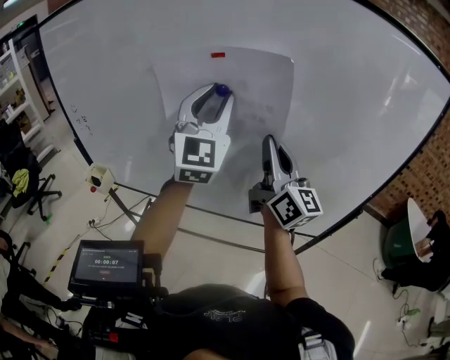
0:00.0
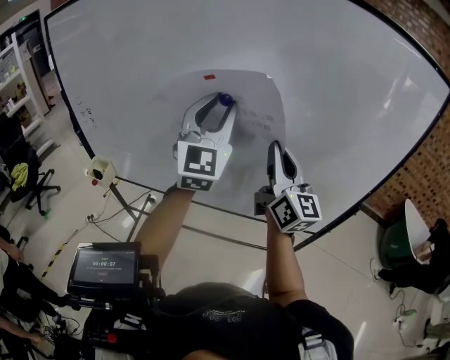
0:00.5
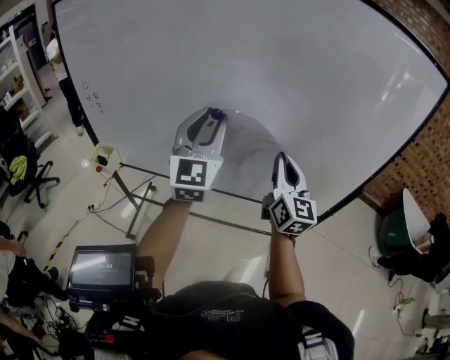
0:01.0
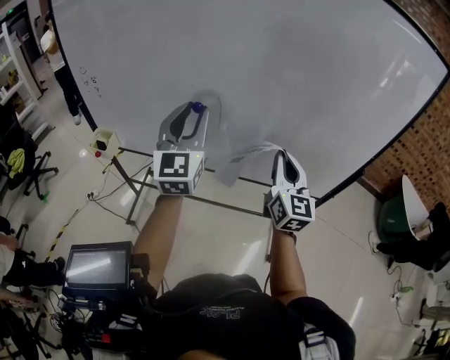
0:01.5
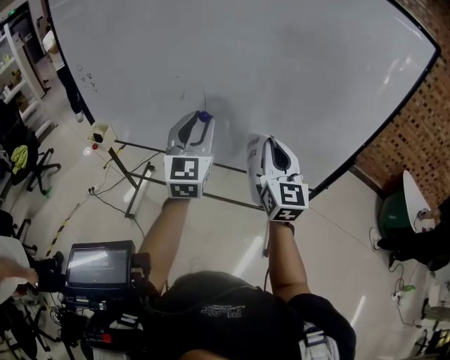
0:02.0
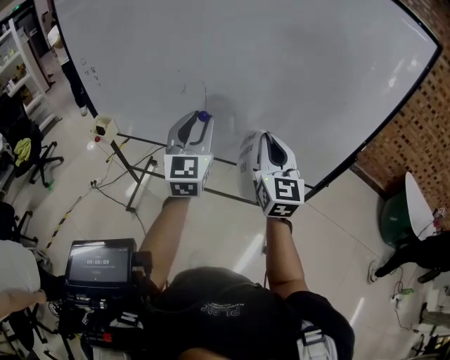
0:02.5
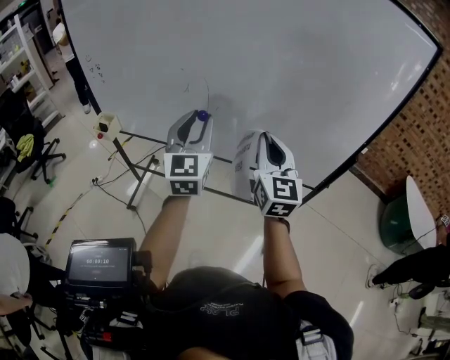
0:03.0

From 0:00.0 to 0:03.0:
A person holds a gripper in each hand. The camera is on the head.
From 0:00.0 to 0:01.5: The right gripper goes some 15 cm downward and backward, and swivels some 30 degrees. The left gripper goes about 15 cm downward, backward and to the left.
From 0:01.5 to 0:03.0: The left gripper shifts some 5 cm to the right.

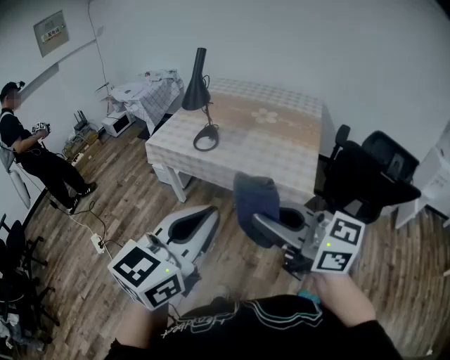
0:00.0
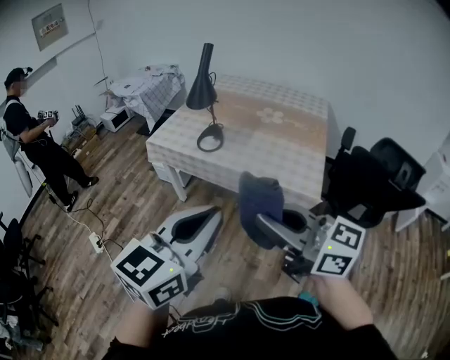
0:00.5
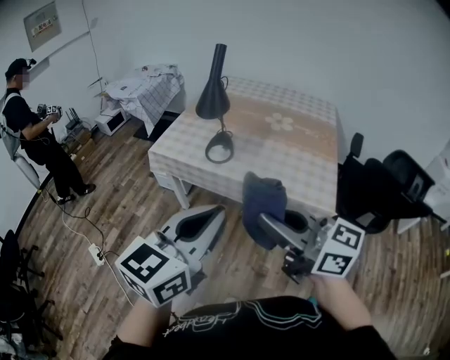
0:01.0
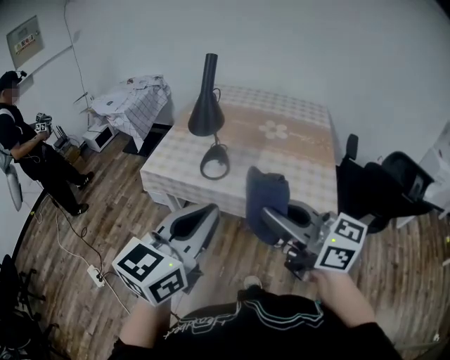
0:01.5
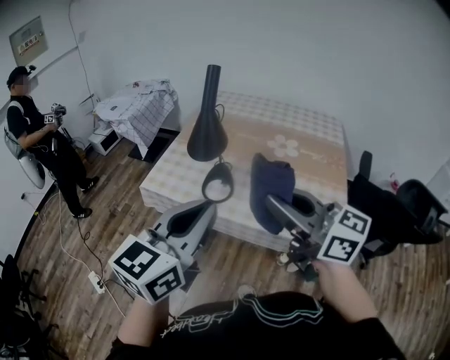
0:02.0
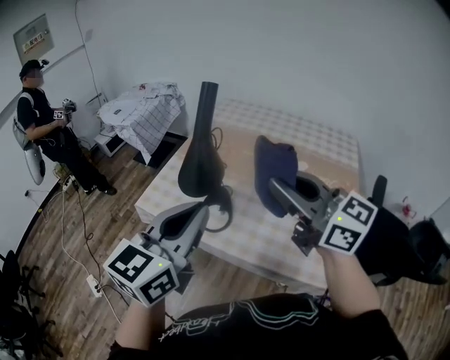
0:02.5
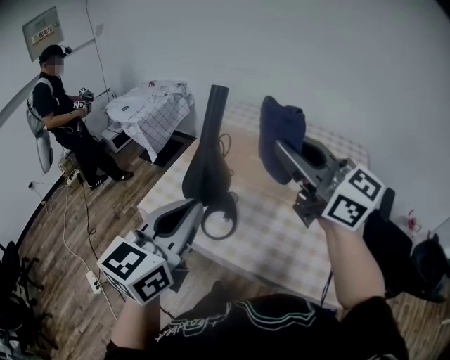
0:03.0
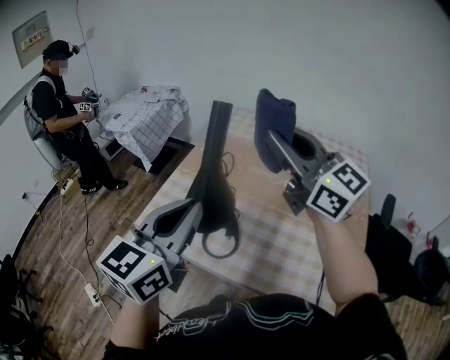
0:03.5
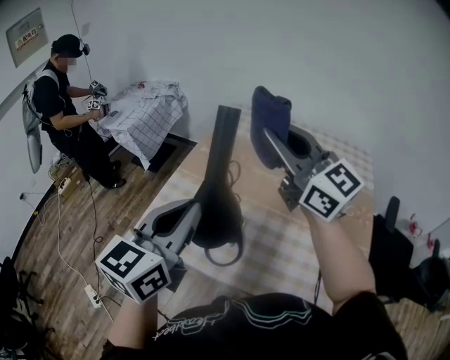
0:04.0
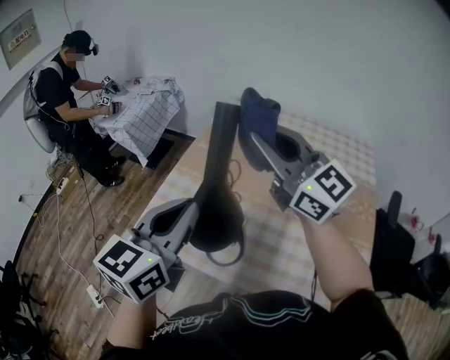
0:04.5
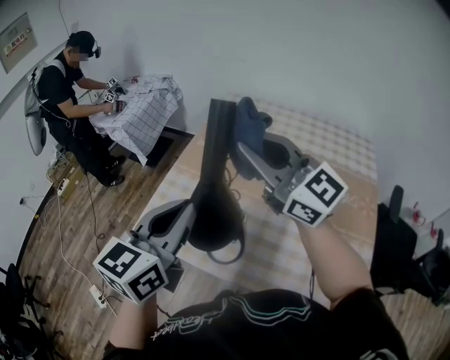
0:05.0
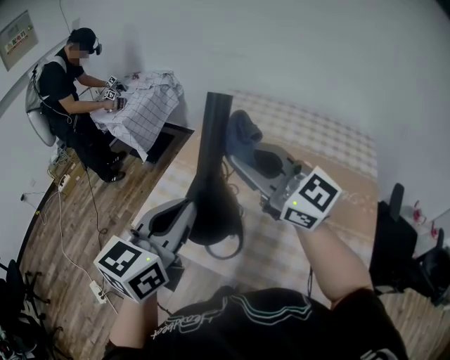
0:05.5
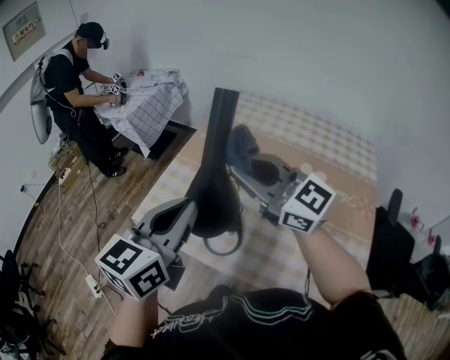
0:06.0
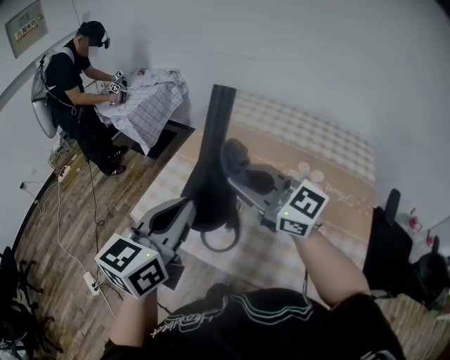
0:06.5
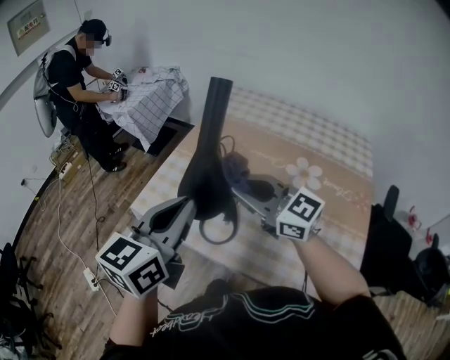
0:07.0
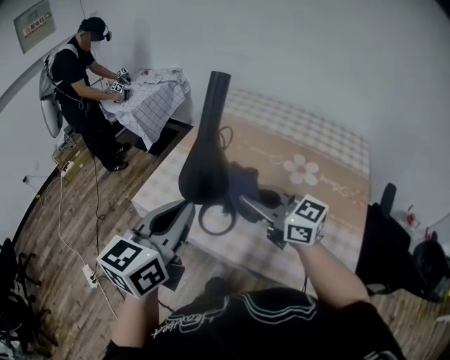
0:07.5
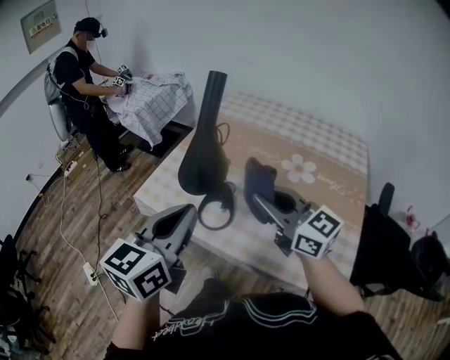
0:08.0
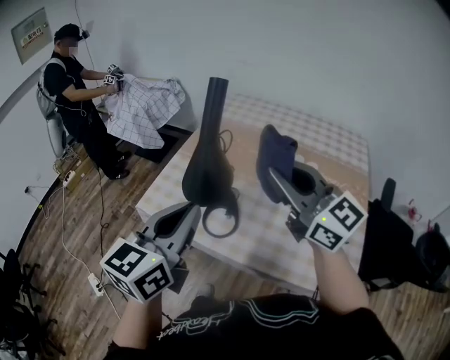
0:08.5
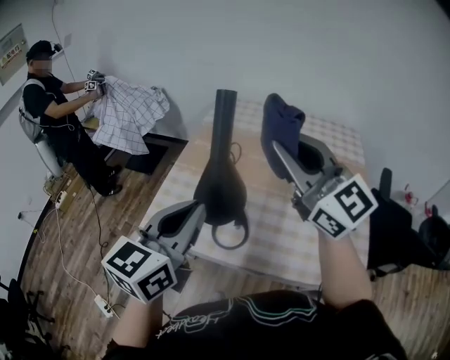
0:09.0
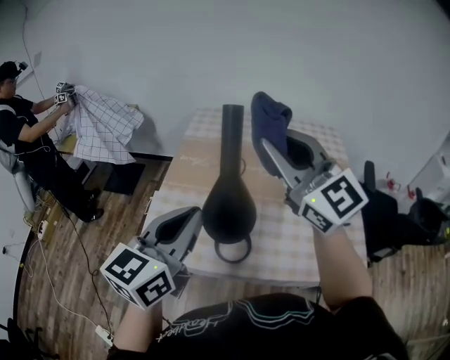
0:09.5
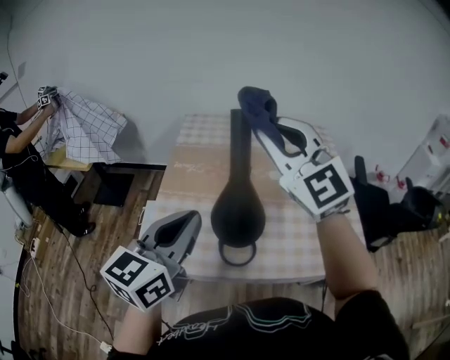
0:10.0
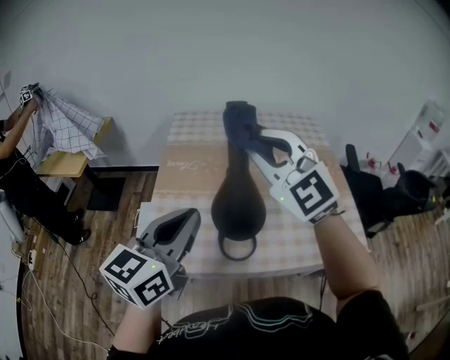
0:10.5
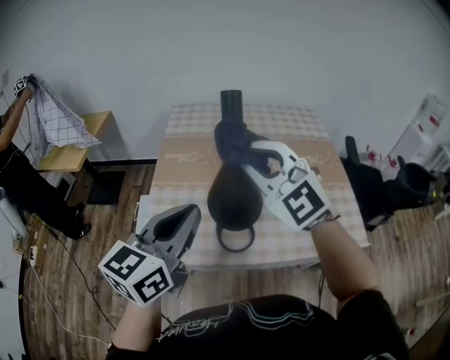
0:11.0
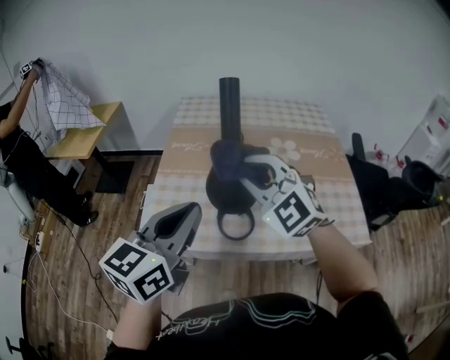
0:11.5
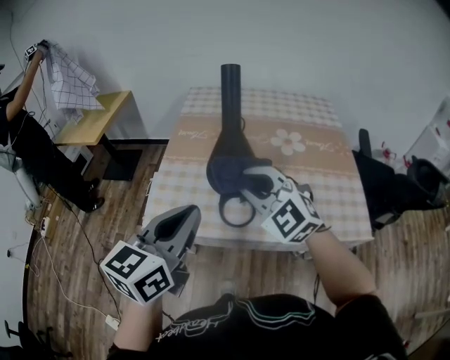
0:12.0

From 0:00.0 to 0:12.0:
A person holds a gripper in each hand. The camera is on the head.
From 0:00.0 to 0:02.0: The two grippers go about 35 cm forward.
From 0:02.0 to 0:04.0: Both grippers travel together forward, roughly 35 cm. The right gripper turns by roughly 20 degrees.
From 0:04.0 to 0:06.0: The right gripper is displaced downward and to the left by approximately 10 cm.
From 0:06.0 to 0:08.0: The left gripper is displaced backward by approximately 15 cm, while the right gripper travels backward and downward by some 15 cm.
From 0:08.0 to 0:10.0: The right gripper moves roughly 25 cm, and turns by roughly 60 degrees, while the left gripper ends up approximately 20 cm from where it was, and turns by about 30 degrees.
From 0:10.0 to 0:12.0: The left gripper goes some 10 cm backward. Meanwhile the right gripper goes about 25 cm downward and backward, and rotates about 20 degrees.

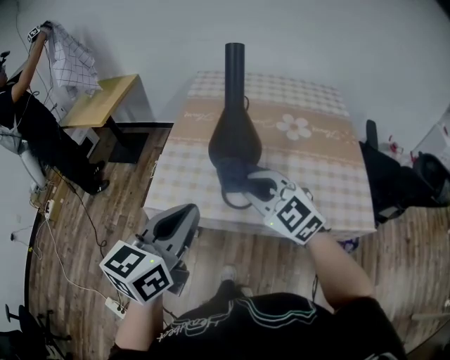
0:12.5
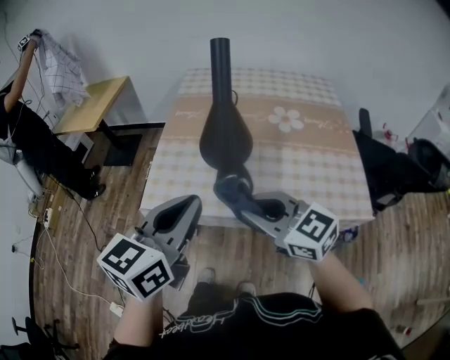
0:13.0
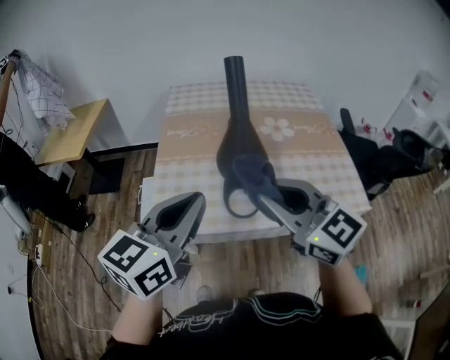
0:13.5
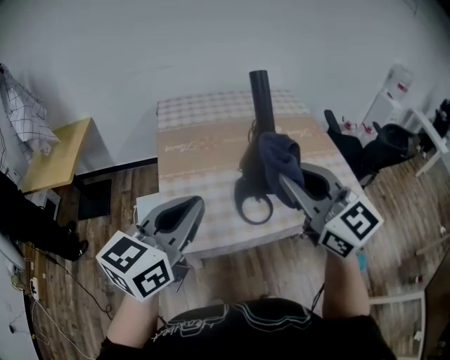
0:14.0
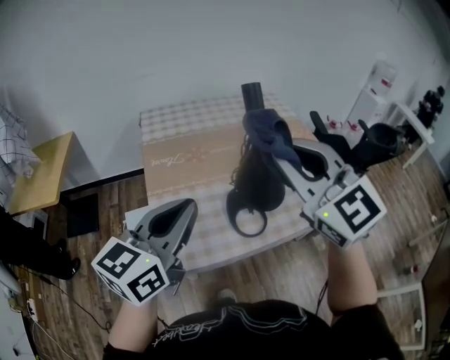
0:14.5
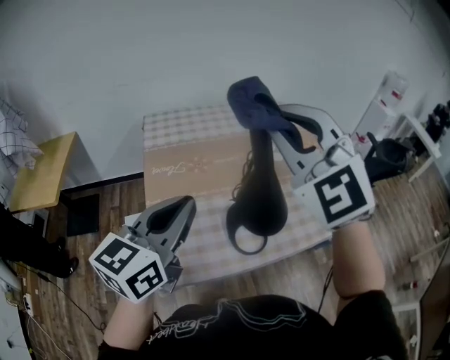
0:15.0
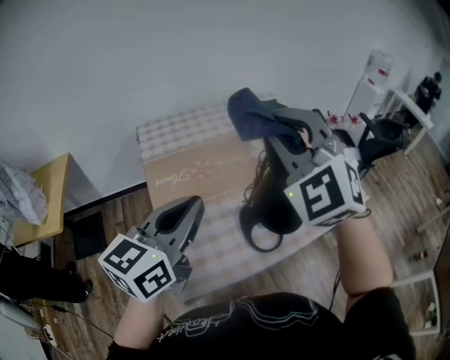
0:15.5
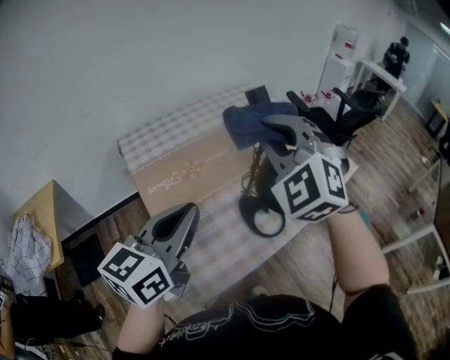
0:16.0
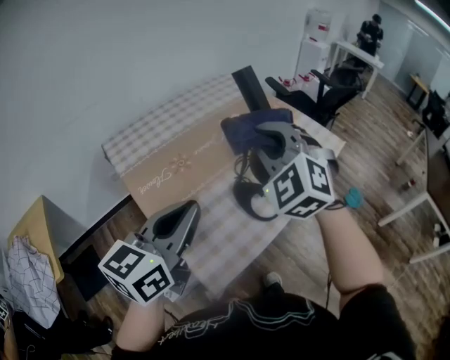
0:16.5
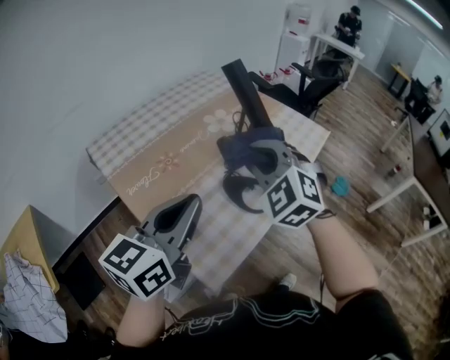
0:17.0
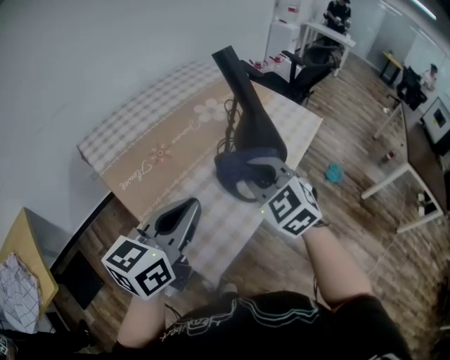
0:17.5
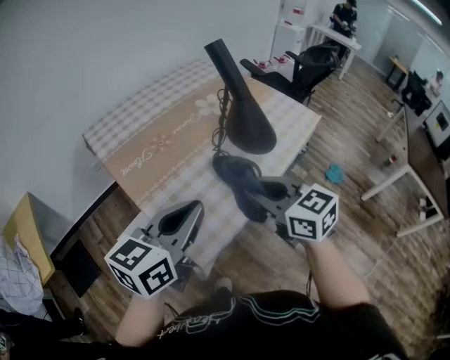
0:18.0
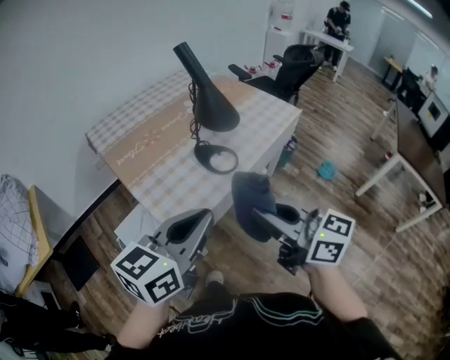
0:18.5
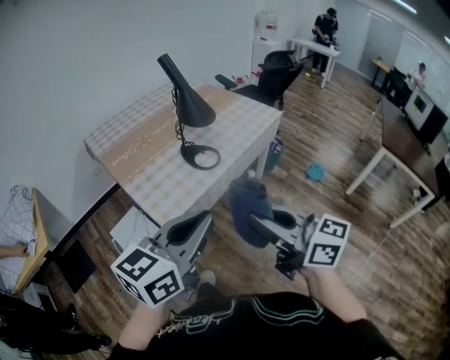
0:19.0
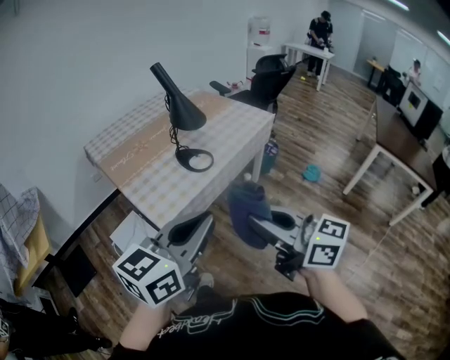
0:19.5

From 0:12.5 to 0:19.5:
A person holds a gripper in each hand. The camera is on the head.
From 0:12.5 to 0:14.5: The right gripper moves upward, some 20 cm, and swivels approximately 40 degrees. The left gripper ends up about 20 cm from where it was, and swivels about 30 degrees.
From 0:14.5 to 0:16.0: The two grippers go about 10 cm forward and to the left. The right gripper rotates about 40 degrees.
From 0:16.0 to 0:17.5: The left gripper heads downward, covering approximately 5 cm, while the right gripper heads downward and backward, covering approximately 20 cm, and swivels roughly 30 degrees.
From 0:17.5 to 0:19.5: The two grippers travel together, backward and to the right, roughly 40 cm. The right gripper points its fingers roughly 30 degrees further upward.

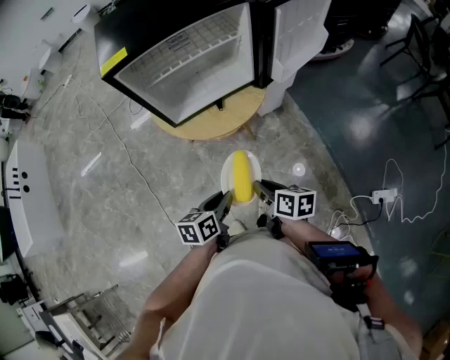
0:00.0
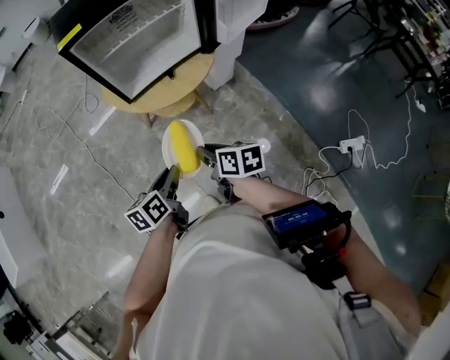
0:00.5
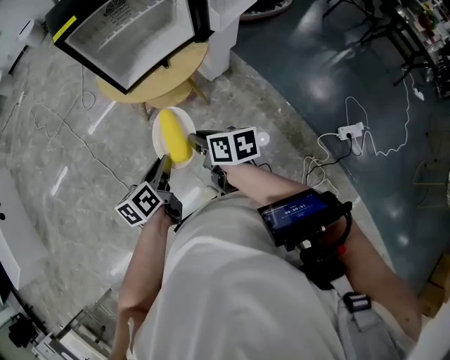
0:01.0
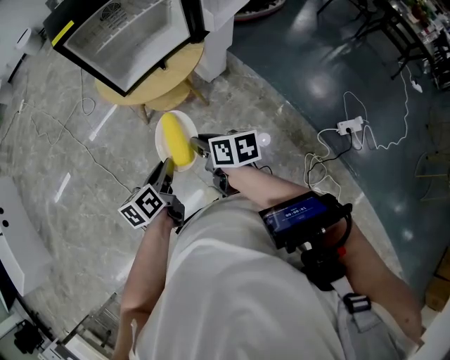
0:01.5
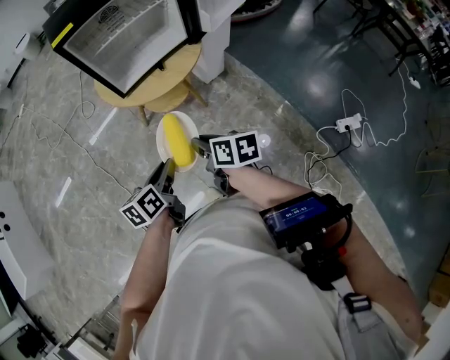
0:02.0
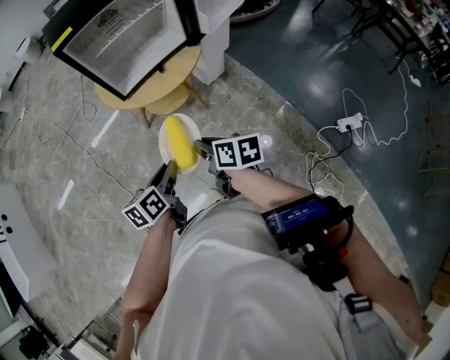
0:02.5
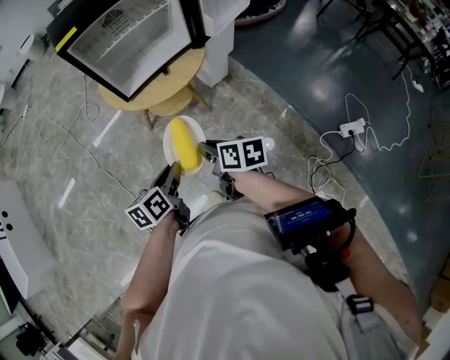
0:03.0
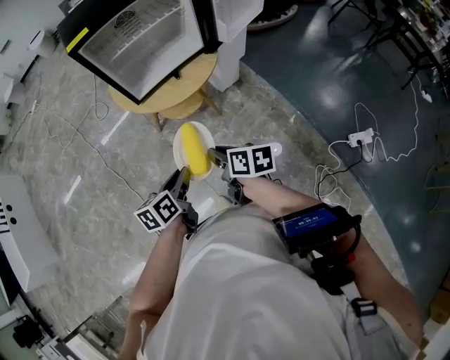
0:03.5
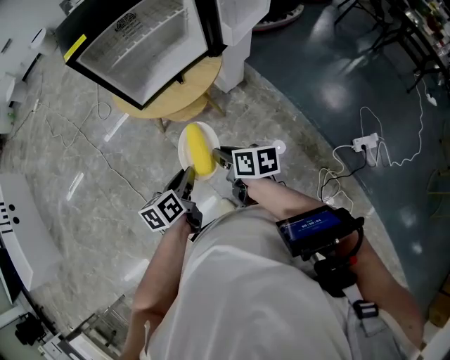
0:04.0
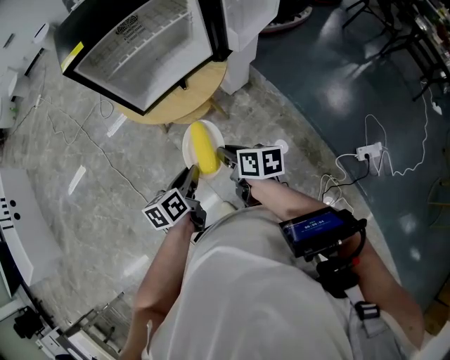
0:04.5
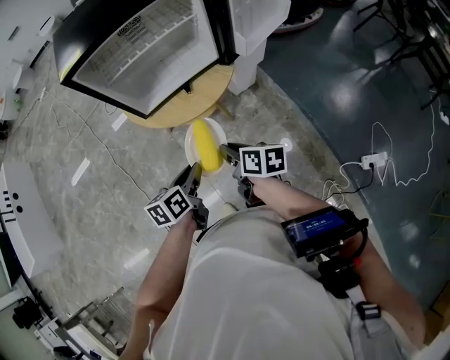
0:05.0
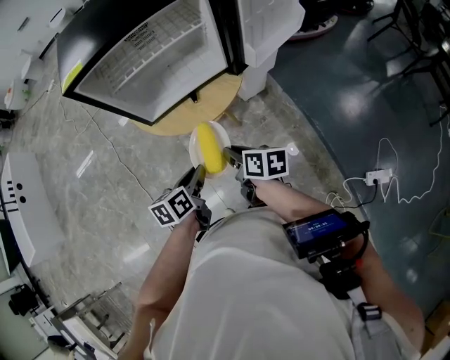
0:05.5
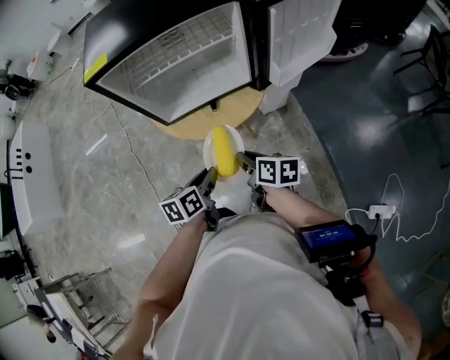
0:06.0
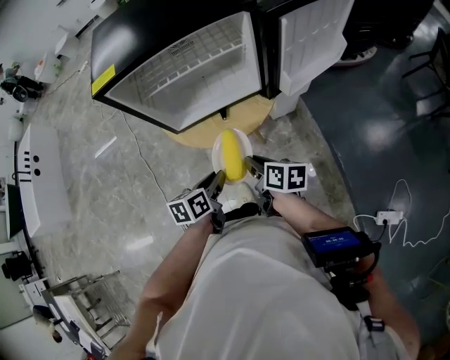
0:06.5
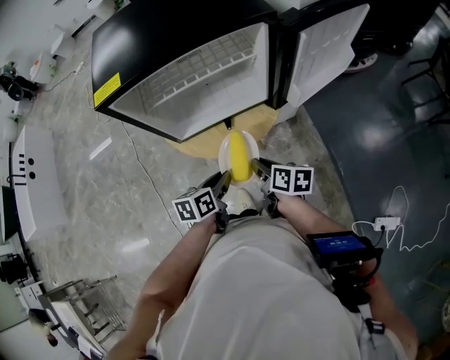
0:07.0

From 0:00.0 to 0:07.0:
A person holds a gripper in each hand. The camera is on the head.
From 0:00.0 to 0:02.0: The grippers both shift to the left and backward by some 10 cm.
From 0:02.0 to 0:03.5: The grippers move only a little.
From 0:03.5 to 0:05.0: The grippers both shift forward and to the right by approximately 15 cm.
From 0:05.0 to 0:07.0: The grippers both shift forward by roughly 15 cm.
